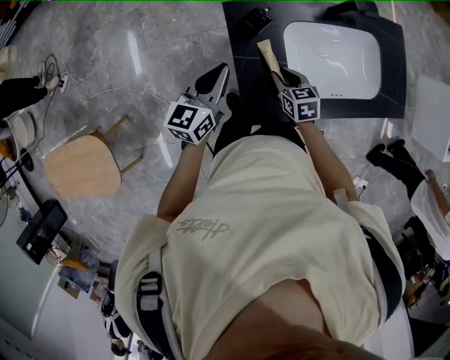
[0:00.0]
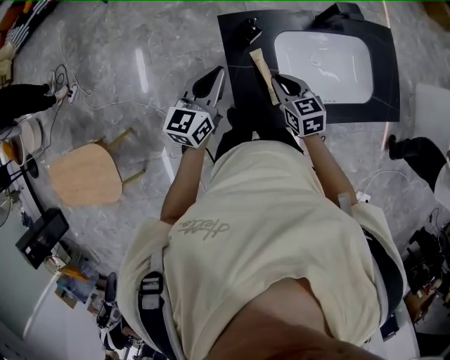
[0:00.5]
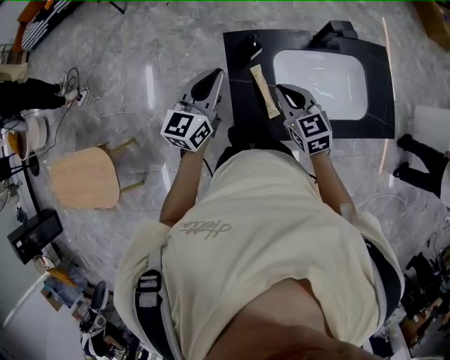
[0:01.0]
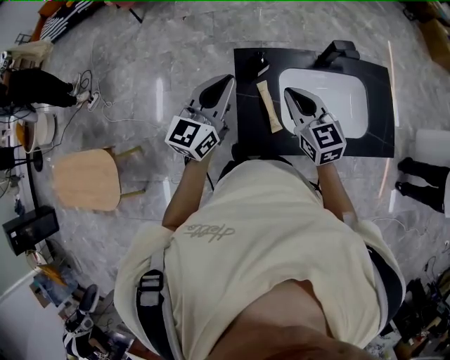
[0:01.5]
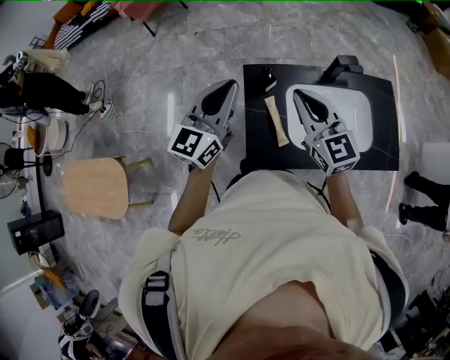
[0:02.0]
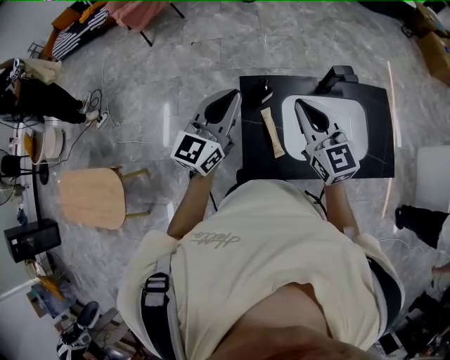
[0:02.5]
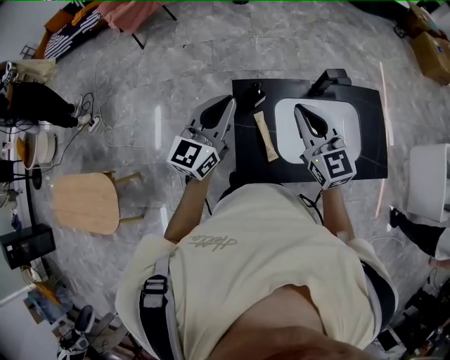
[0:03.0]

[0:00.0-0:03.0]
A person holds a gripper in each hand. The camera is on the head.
0:00.0 to 0:01.5: The grippers both shift upward by roughly 20 cm. The left gripper rotates approximately 20 degrees; the right gripper tilts its fingers some 30 degrees upward, and closes.
0:01.5 to 0:03.0: The right gripper heads upward, covering roughly 10 cm.

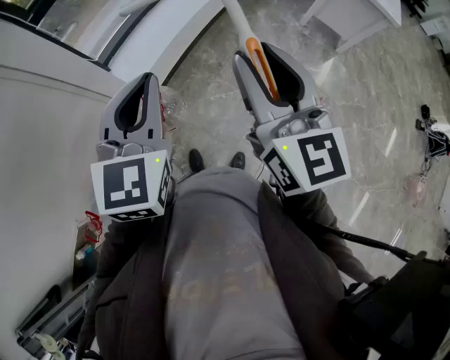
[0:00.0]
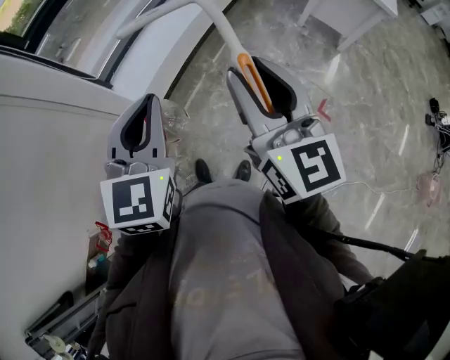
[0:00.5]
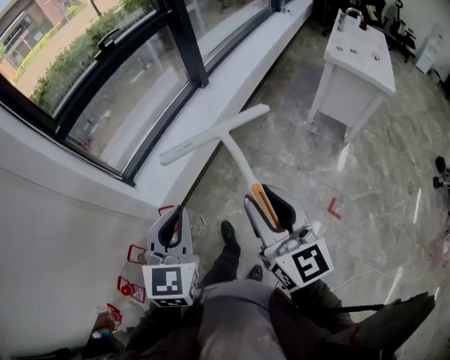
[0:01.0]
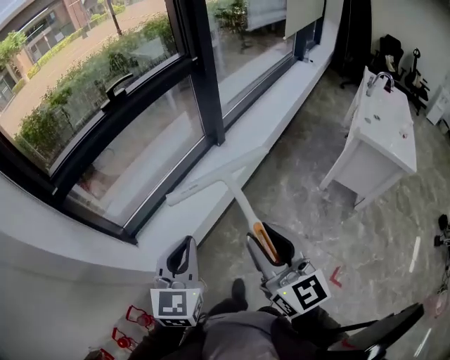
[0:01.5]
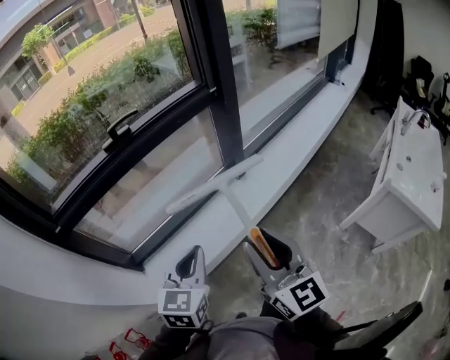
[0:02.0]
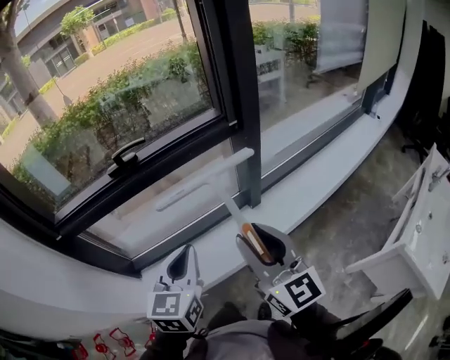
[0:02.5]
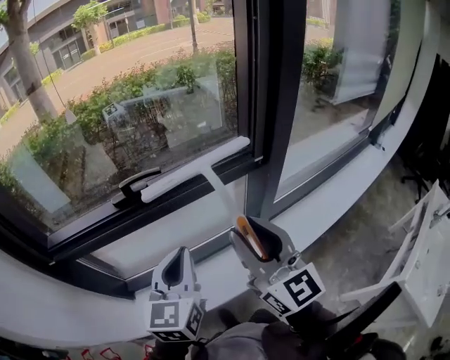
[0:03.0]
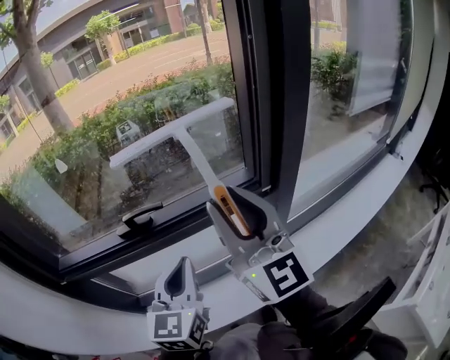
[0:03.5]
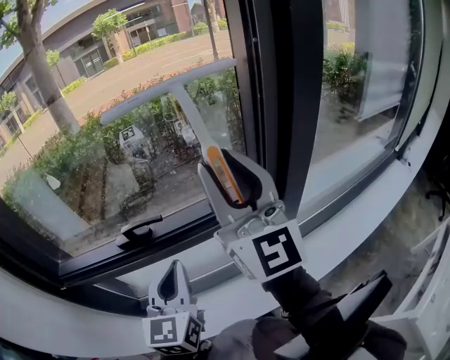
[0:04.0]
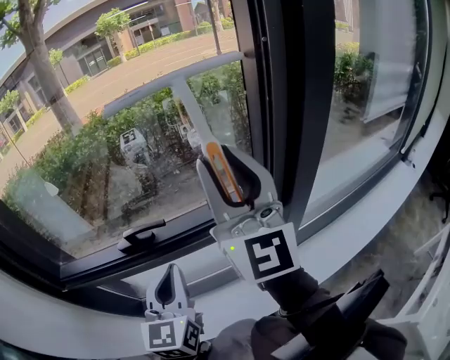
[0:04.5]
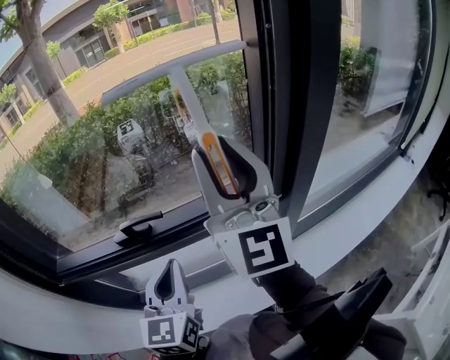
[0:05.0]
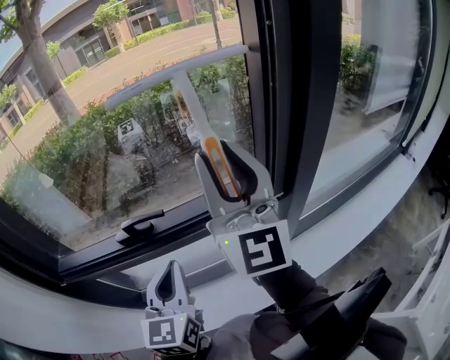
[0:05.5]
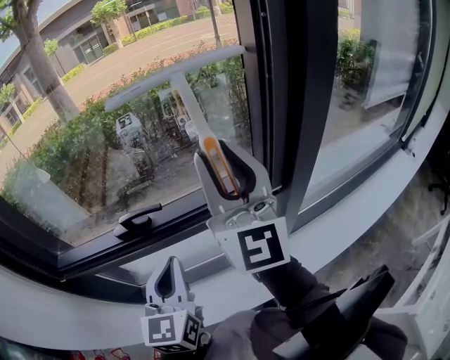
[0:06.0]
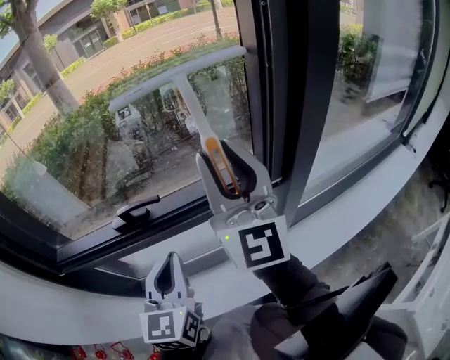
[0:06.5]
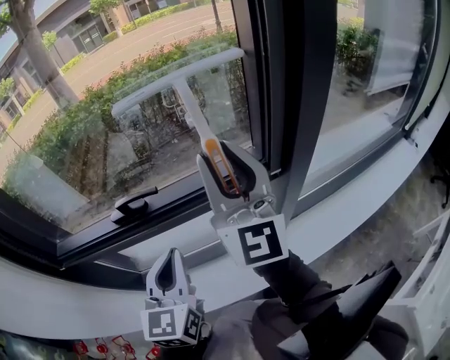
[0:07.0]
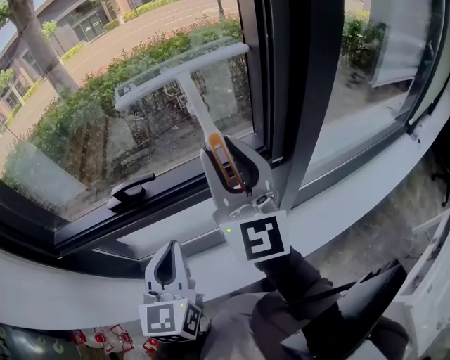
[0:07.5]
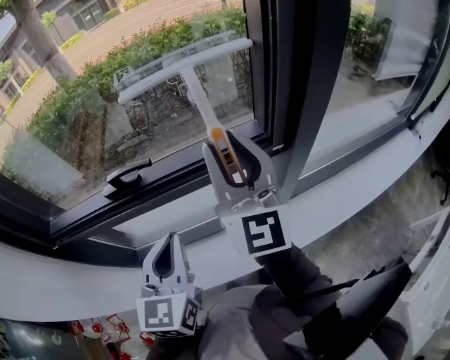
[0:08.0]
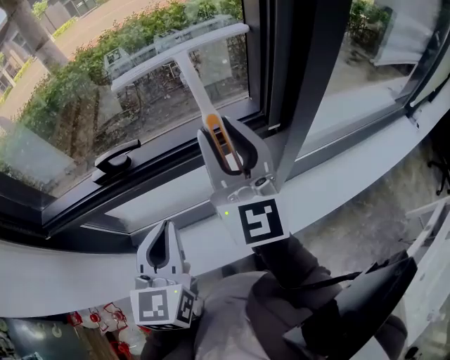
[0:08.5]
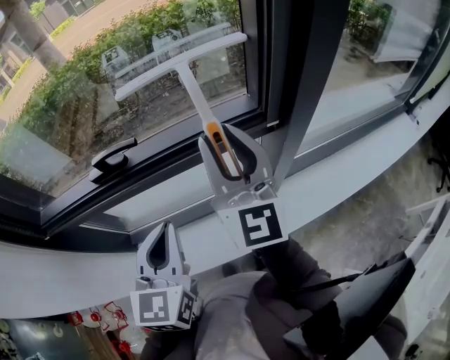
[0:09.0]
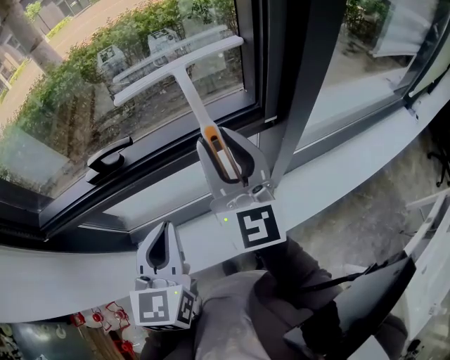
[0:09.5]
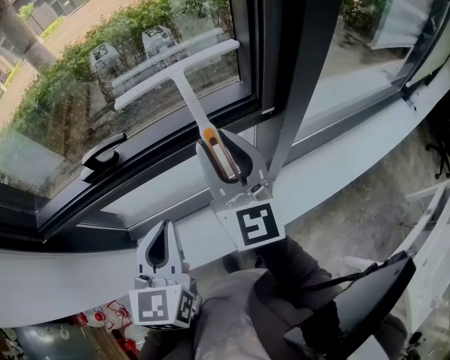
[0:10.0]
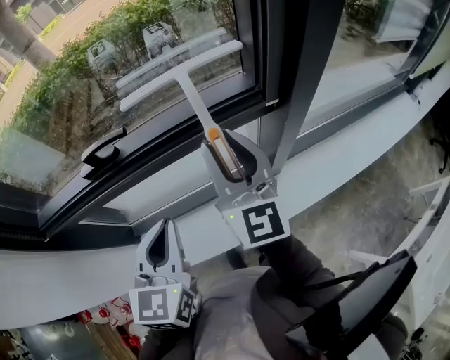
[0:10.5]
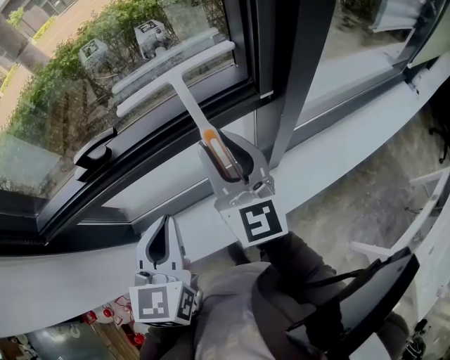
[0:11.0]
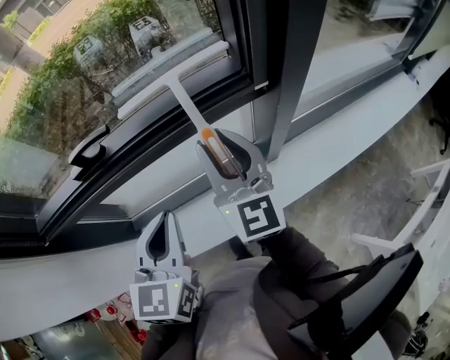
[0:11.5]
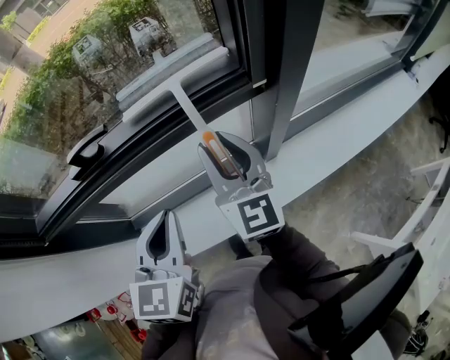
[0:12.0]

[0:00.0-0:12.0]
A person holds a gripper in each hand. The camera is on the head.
0:00.0 to 0:02.0: The pair of grippers is taken forward, roughly 50 cm.
0:02.0 to 0:04.0: The left gripper moves some 35 cm, and turns by some 40 degrees; the right gripper moves approximately 50 cm, and rotates roughly 30 degrees.
0:04.0 to 0:06.0: The grippers stay close to where they were, moving slightly.
0:06.0 to 0:08.0: The right gripper is displaced downward by approximately 10 cm.
0:08.0 to 0:10.0: The right gripper is displaced downward by some 10 cm.
0:10.0 to 0:12.0: The right gripper travels downward by roughly 10 cm.

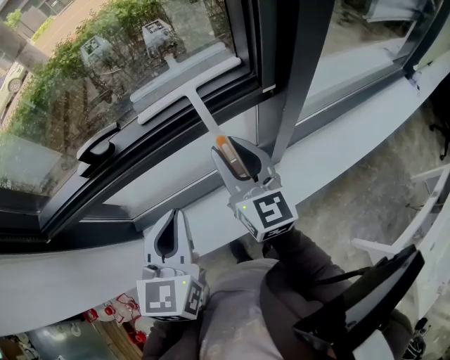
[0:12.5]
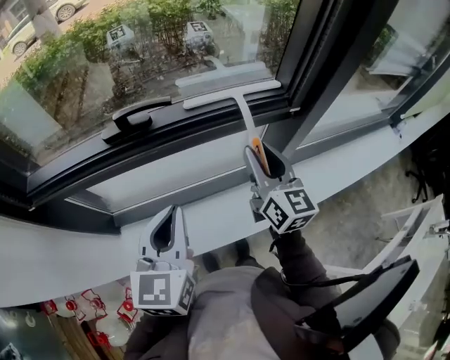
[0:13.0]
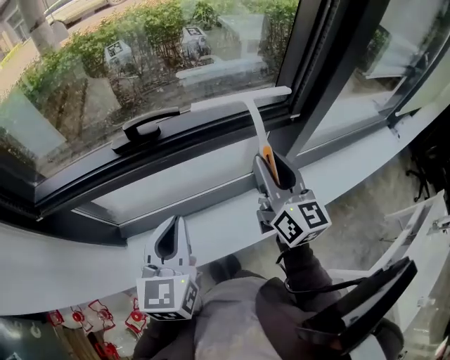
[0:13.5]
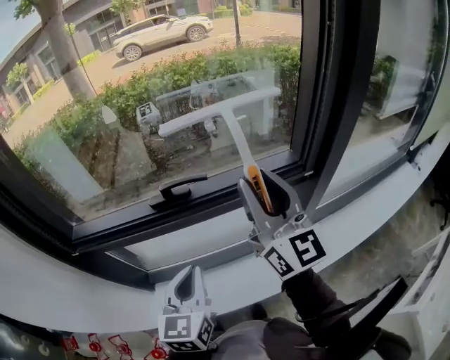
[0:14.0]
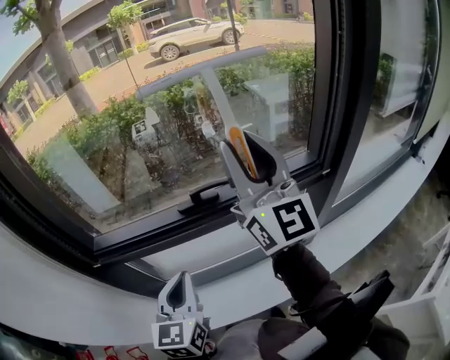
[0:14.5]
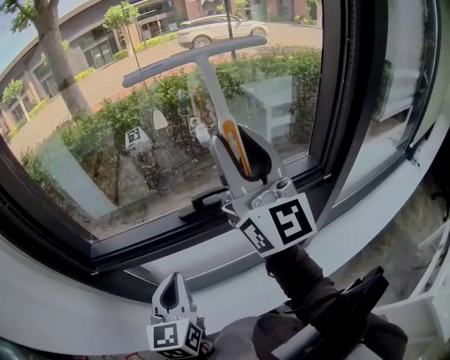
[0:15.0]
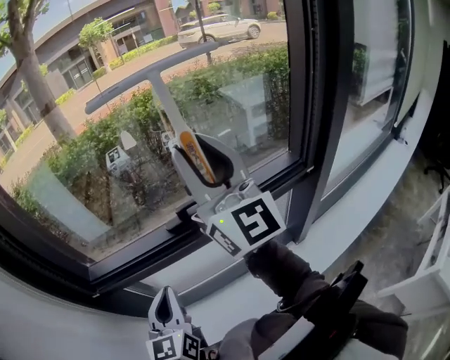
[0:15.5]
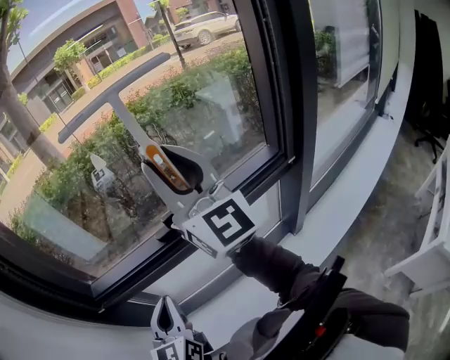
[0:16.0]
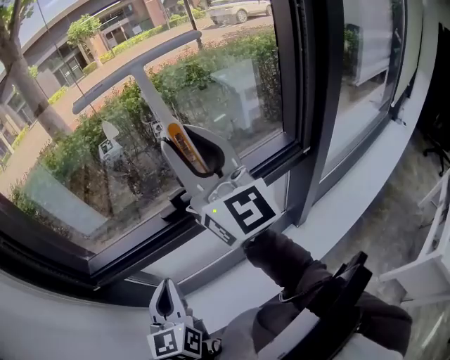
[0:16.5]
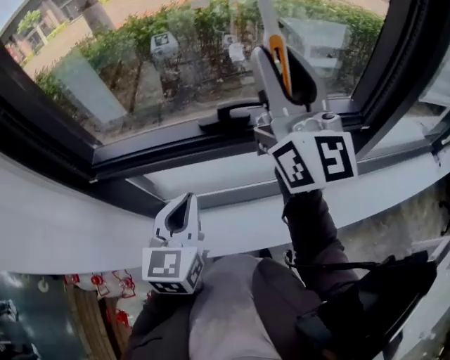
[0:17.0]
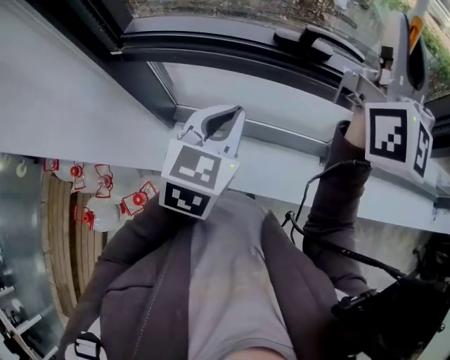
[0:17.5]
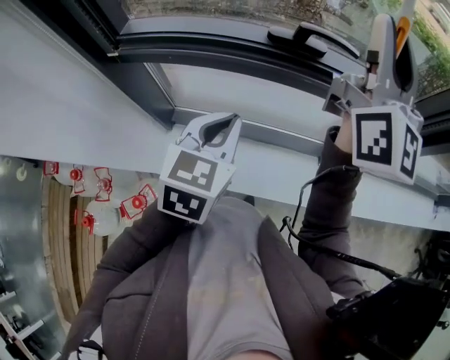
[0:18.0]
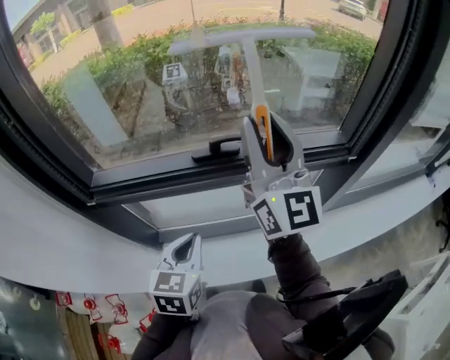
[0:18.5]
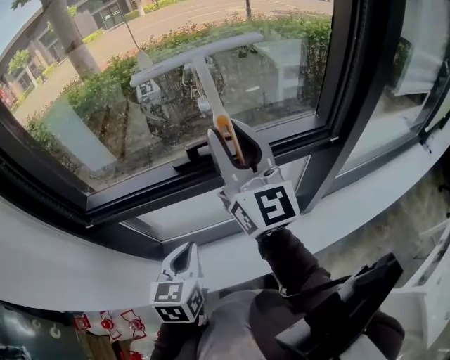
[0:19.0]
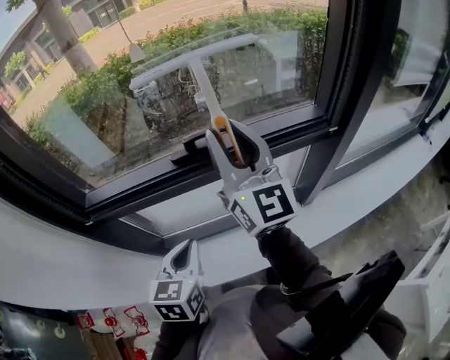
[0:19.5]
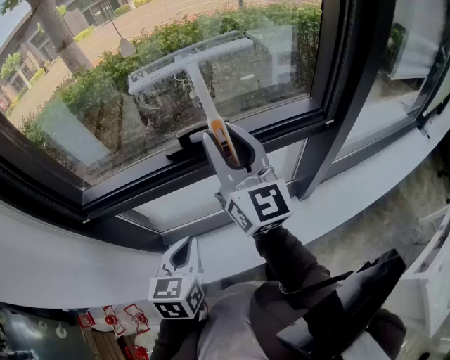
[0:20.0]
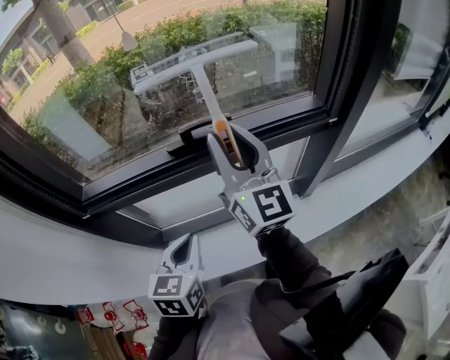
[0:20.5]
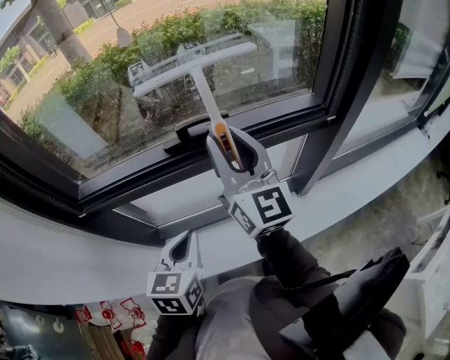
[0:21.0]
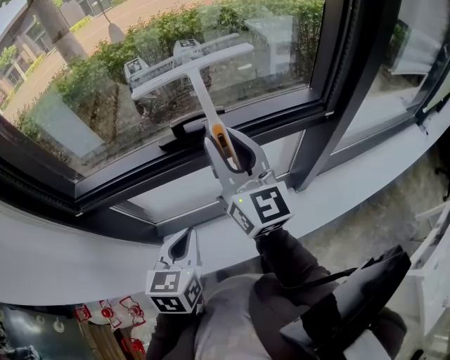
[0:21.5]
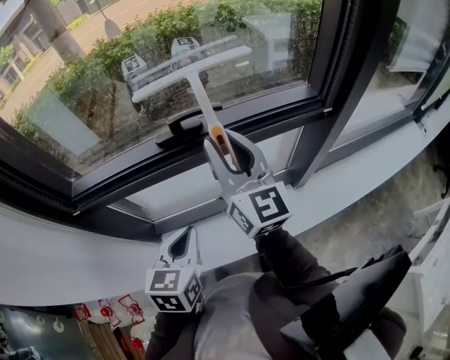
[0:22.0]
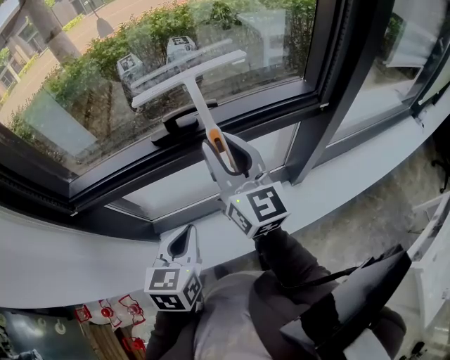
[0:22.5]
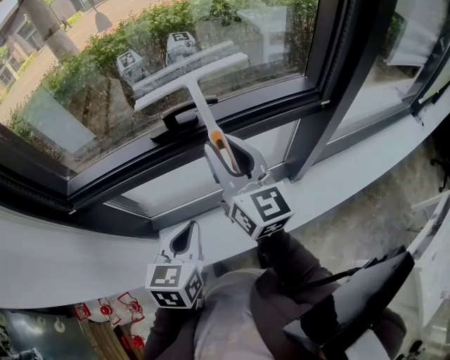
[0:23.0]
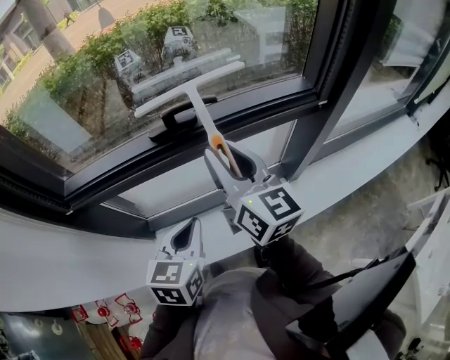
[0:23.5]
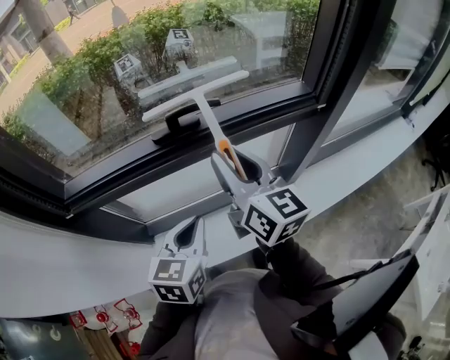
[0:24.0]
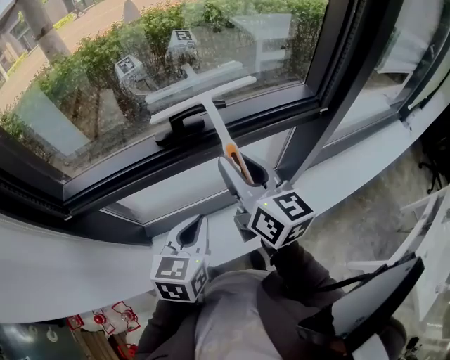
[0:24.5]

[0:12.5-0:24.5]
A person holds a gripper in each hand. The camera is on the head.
0:12.5 to 0:14.5: The right gripper goes roughly 30 cm upward and to the left, and rotates roughly 30 degrees; the left gripper goes approximately 20 cm to the left.
0:14.5 to 0:16.5: There are only small adjustments of the grippers.
0:16.5 to 0:18.5: The grippers both shift downward by roughly 10 cm.
0:18.5 to 0:20.5: The right gripper shifts about 5 cm downward.
0:20.5 to 0:22.5: The right gripper heads downward, covering roughly 5 cm.
0:22.5 to 0:24.5: The grippers stay close to where they were, moving slightly.
